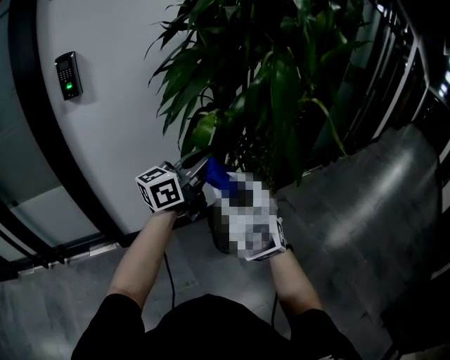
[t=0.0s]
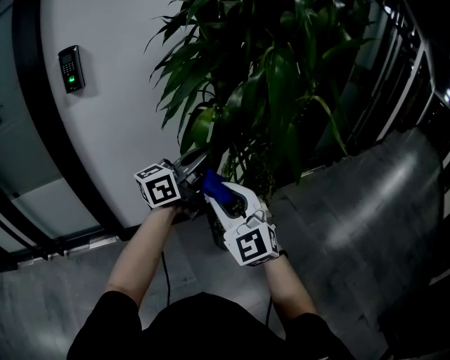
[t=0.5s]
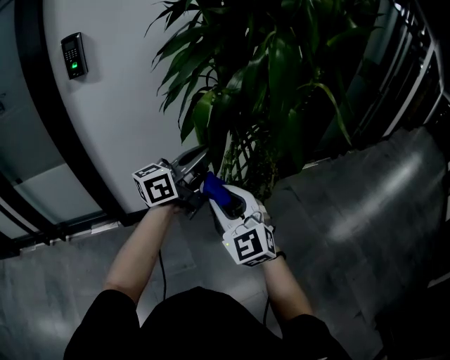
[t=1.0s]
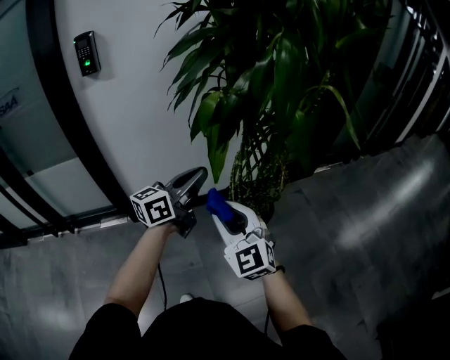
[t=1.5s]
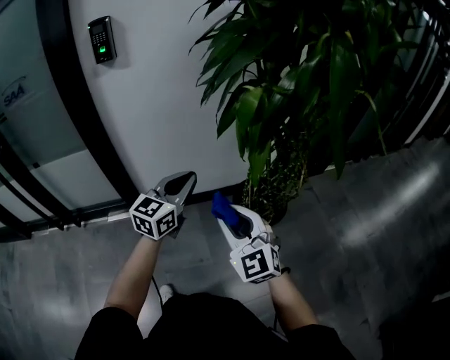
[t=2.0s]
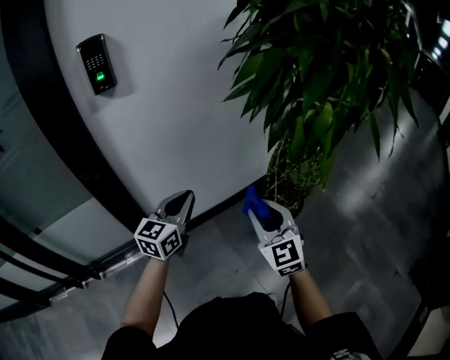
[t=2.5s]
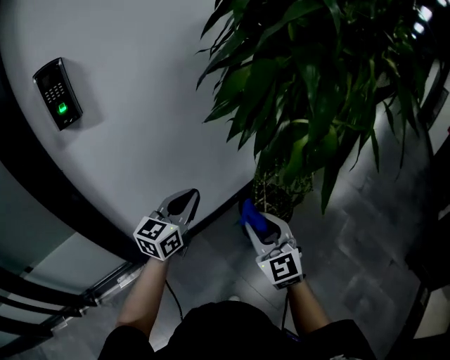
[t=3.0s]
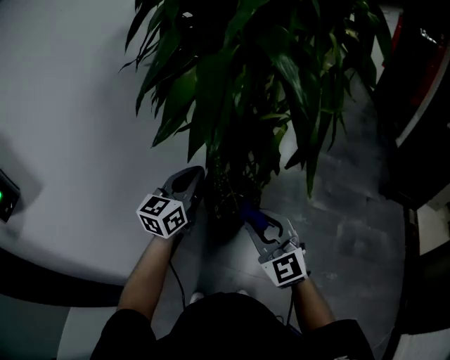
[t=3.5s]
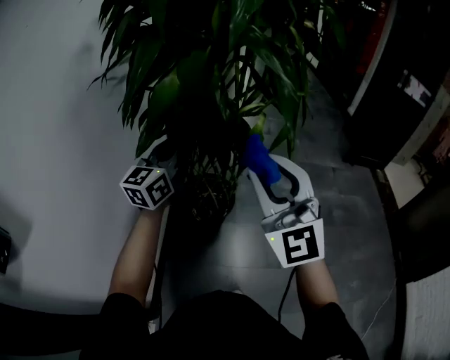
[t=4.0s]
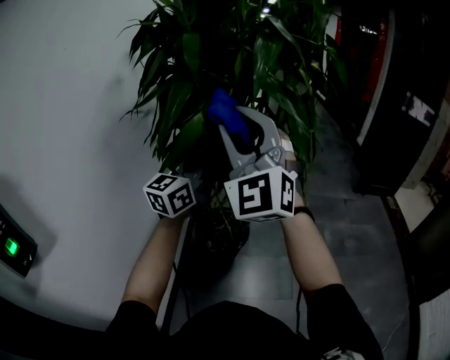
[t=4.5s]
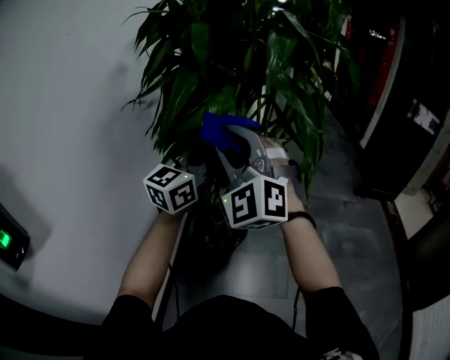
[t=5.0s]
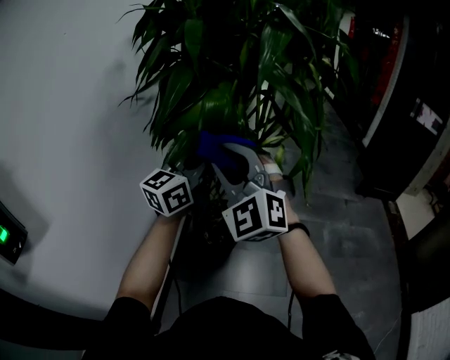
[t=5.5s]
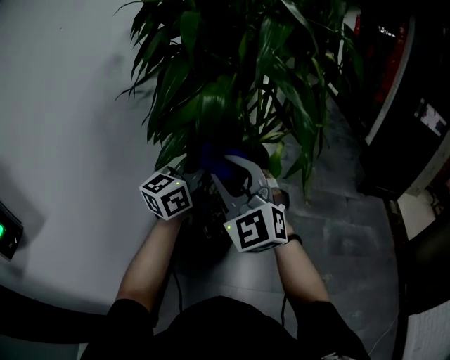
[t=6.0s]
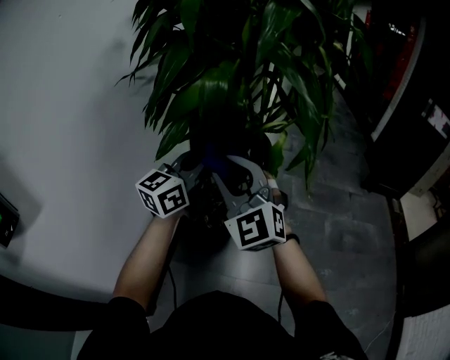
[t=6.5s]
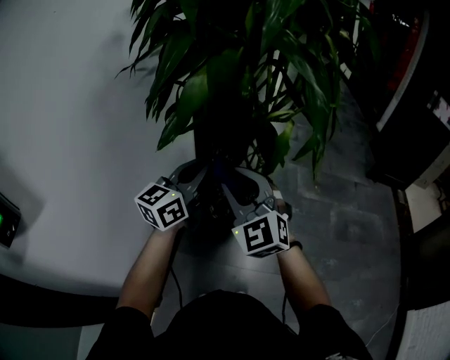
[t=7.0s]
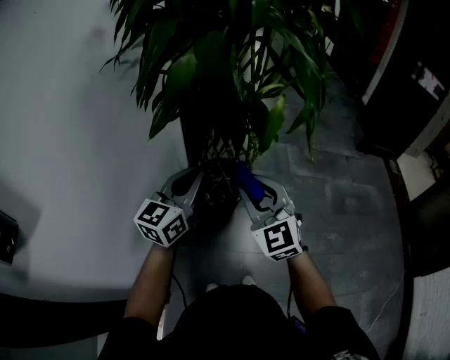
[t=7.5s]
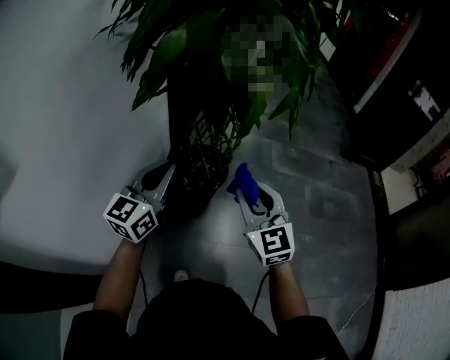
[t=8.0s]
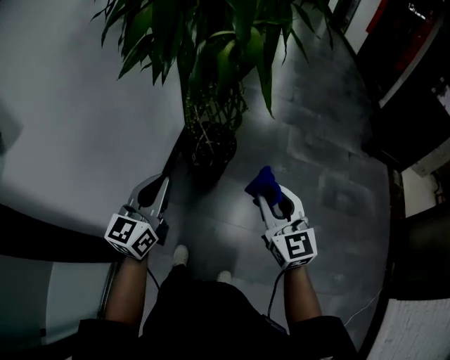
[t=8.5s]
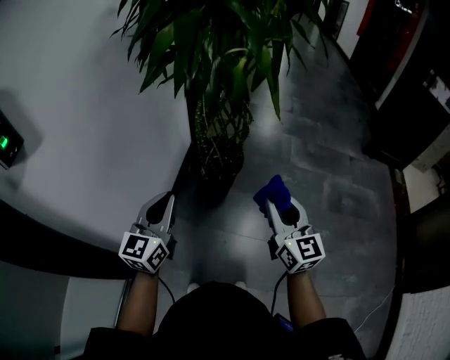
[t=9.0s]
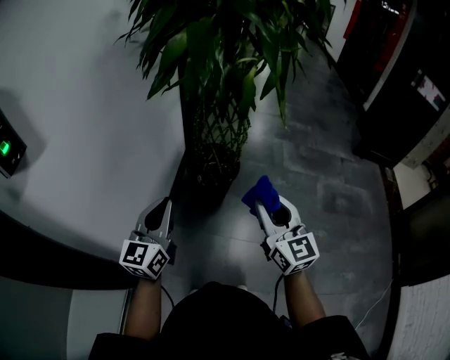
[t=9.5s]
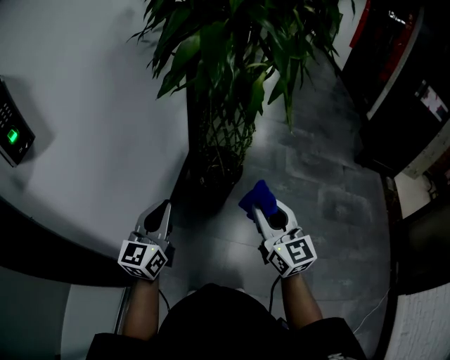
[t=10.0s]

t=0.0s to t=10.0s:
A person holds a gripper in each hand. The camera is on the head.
t=0.0s to t=2.0s: The left gripper is displaced downward and to the left by roughly 20 cm, and rotates about 40 degrees. The right gripper moves downward and backward, about 15 cm.
t=2.0s to t=4.0s: The right gripper moves upward, some 20 cm, and turns by about 70 degrees; the left gripper moves some 25 cm, and changes its angle by about 60 degrees.
t=4.0s to t=6.0s: The right gripper moves to the left, roughly 10 cm, and travels upward and back again, approximately 15 cm each way.
t=6.0s to t=8.0s: The right gripper heads downward, to the right and backward, covering roughly 25 cm, and changes its angle by approximately 30 degrees. The left gripper goes some 20 cm downward and backward.
t=8.0s to t=10.0s: Both grippers move backward, roughly 15 cm. The right gripper moves about 15 cm to the right and comes back, and changes its angle by approximately 20 degrees.

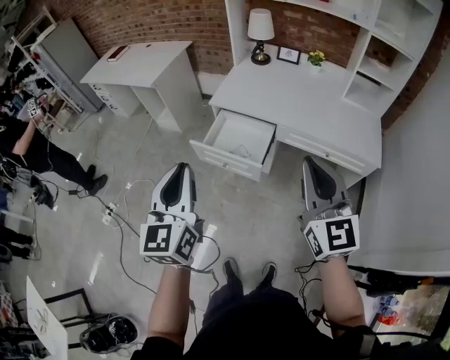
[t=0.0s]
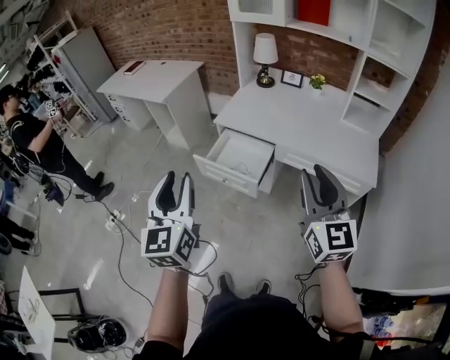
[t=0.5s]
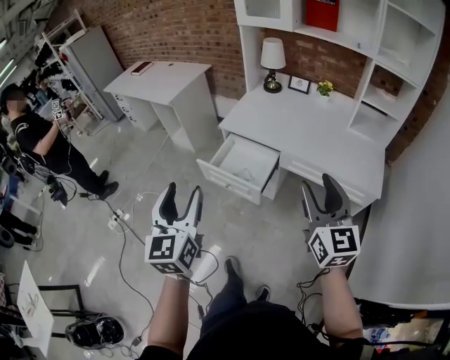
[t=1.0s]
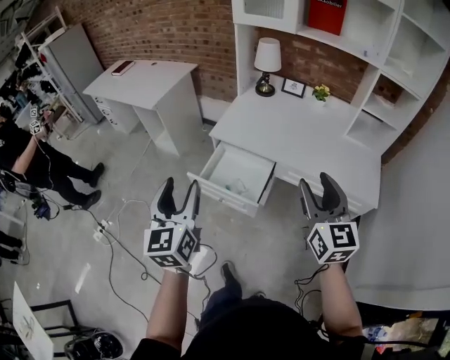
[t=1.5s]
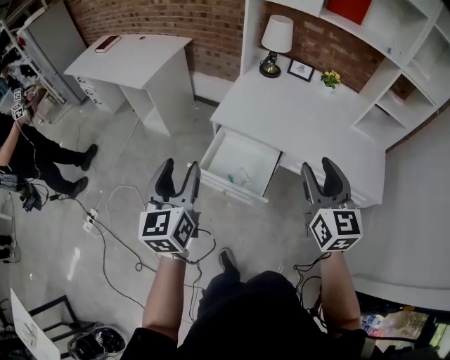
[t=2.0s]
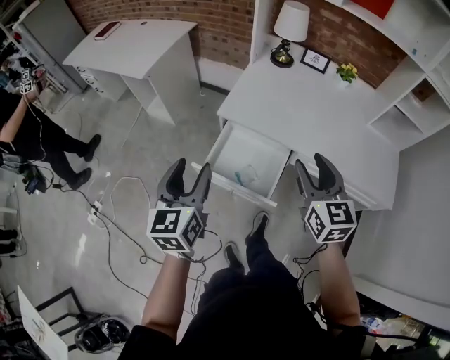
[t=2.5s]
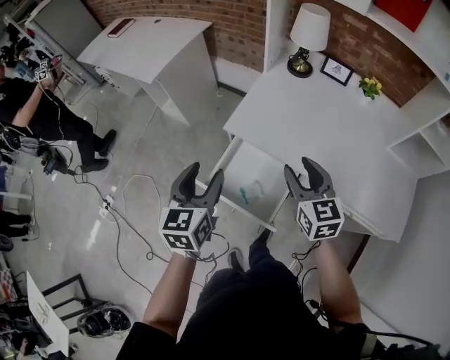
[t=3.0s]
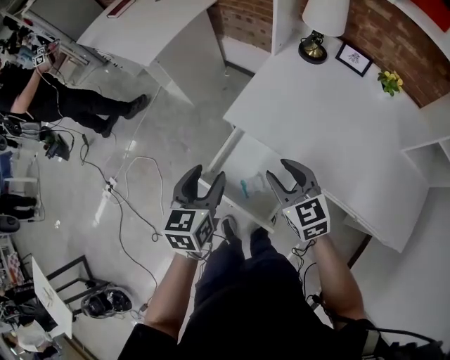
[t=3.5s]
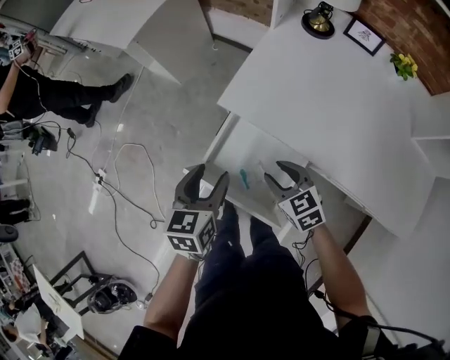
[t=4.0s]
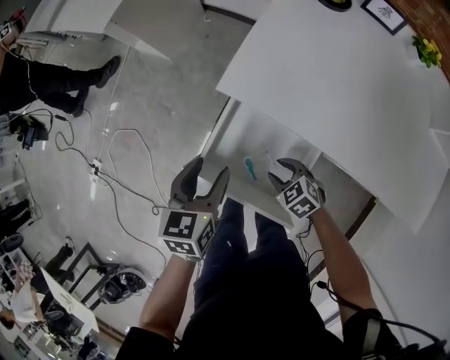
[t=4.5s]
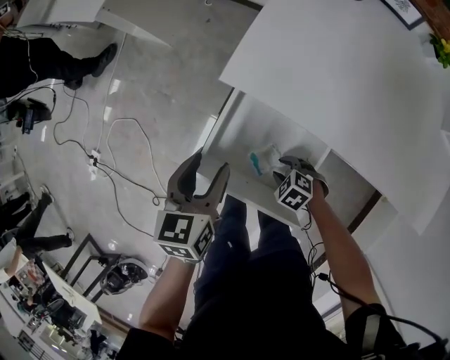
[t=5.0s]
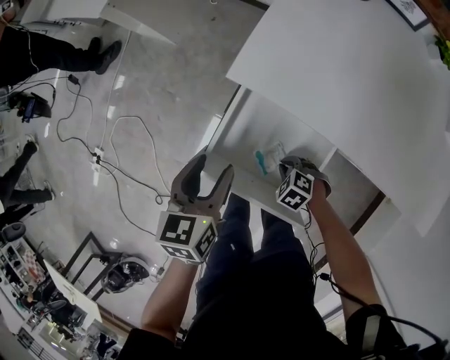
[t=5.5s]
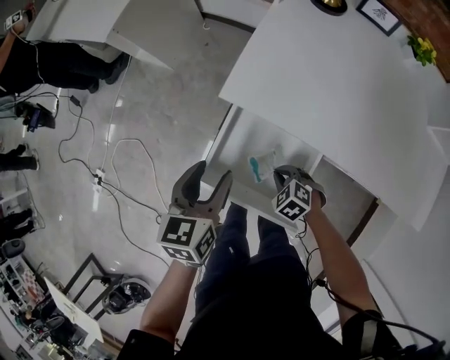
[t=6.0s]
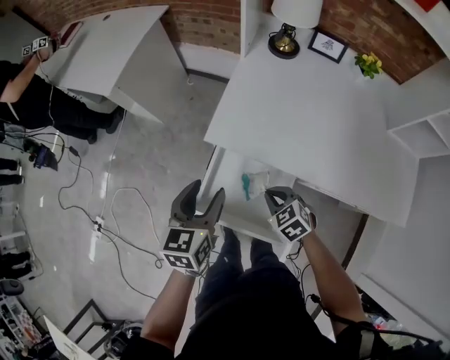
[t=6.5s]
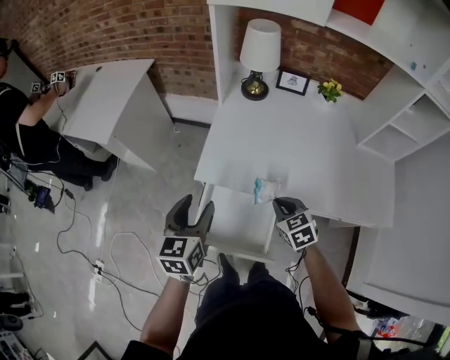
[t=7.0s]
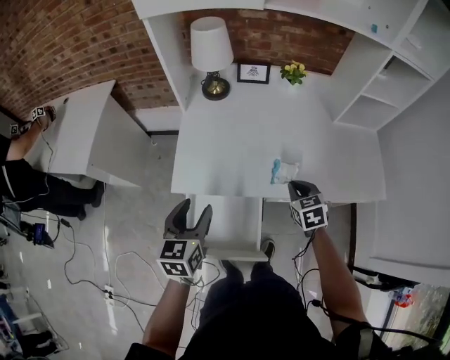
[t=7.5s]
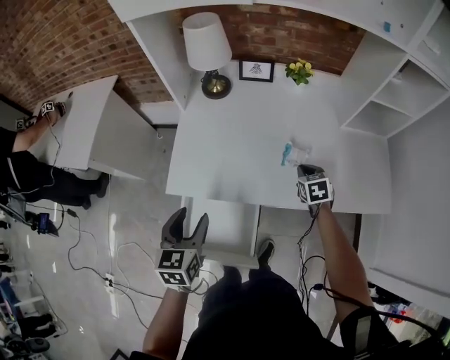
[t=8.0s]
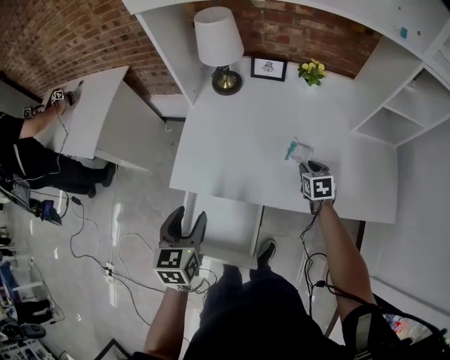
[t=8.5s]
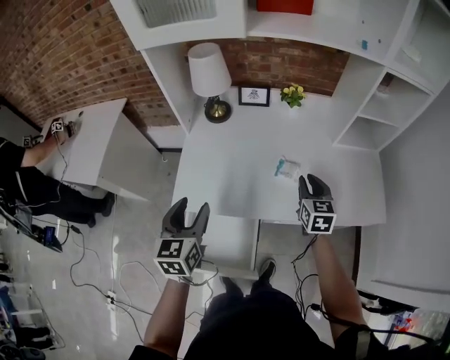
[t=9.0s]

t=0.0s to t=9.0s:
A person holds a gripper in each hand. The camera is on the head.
t=0.0s to t=2.0s: The grippers both shift forward by about 20 cm. The right gripper opens up. Meanwhile the left gripper opens up.
t=2.0s to t=4.5s: The grippers both shift downward and forward by roughly 40 cm. The right gripper points its fingers some 50 degrees further downward; the left gripper tips its fingers downward by about 30 degrees.
t=4.5s to t=7.0s: Both grippers travel together upward, about 20 cm. The right gripper swivels about 40 degrees, and closes. Meanwhile the left gripper turns by some 20 degrees.
t=7.0s to t=9.0s: The left gripper goes roughly 15 cm to the right and forward. Meanwhile the right gripper goes approximately 25 cm to the right and forward, turns by some 40 degrees, and opens.

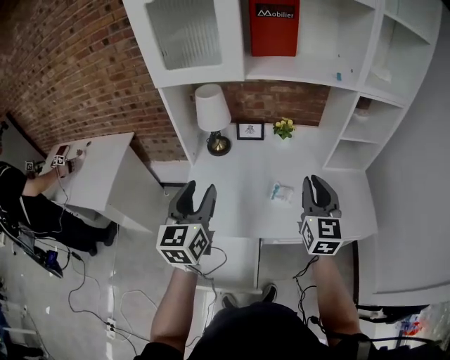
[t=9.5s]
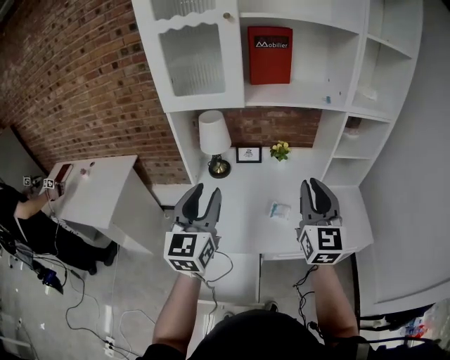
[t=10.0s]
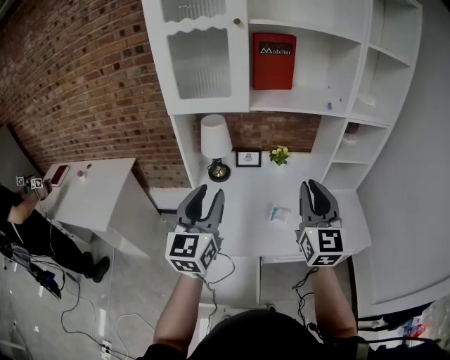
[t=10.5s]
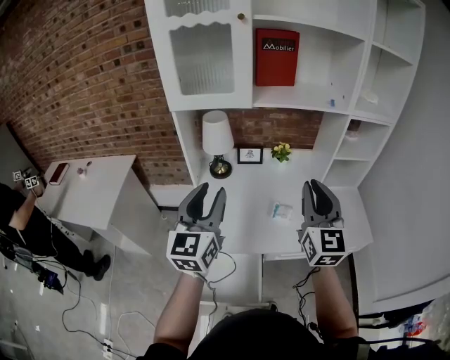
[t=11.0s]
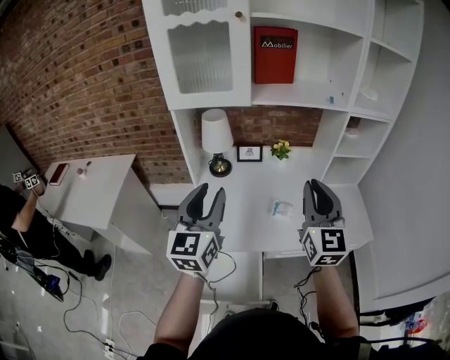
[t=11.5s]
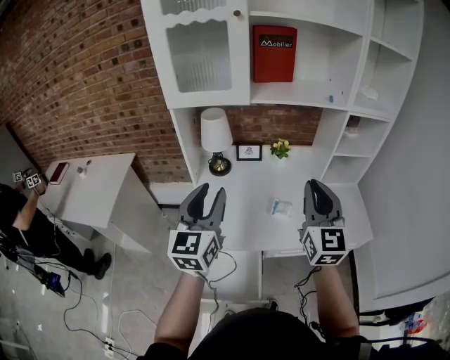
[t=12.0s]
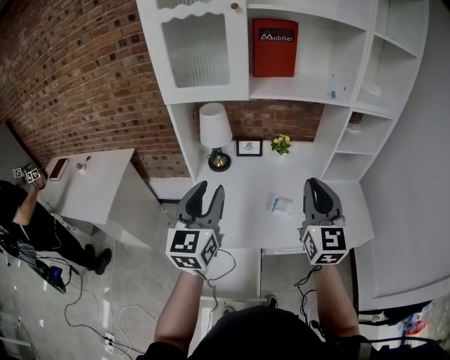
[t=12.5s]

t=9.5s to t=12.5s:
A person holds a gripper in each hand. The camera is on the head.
t=9.5s to t=11.0s: The two grippers go some 10 cm upward.
t=11.0s to t=12.5s: There are only small adjustments of the grippers.

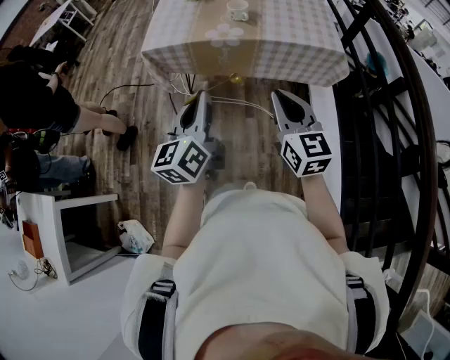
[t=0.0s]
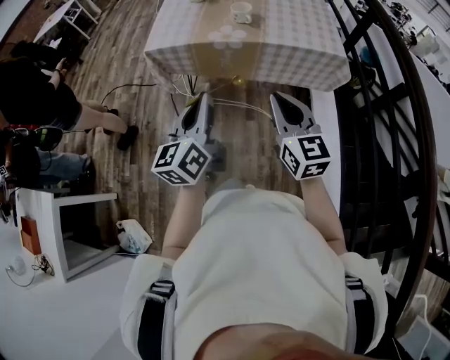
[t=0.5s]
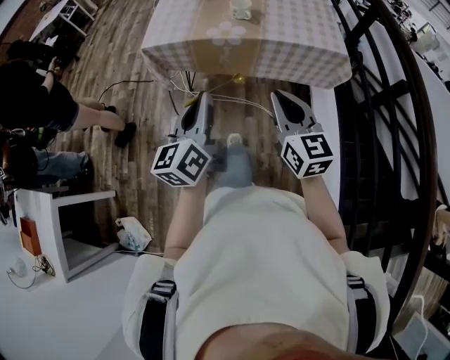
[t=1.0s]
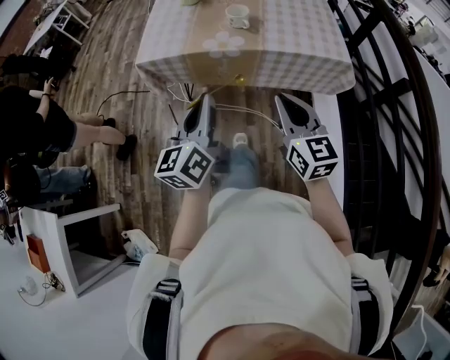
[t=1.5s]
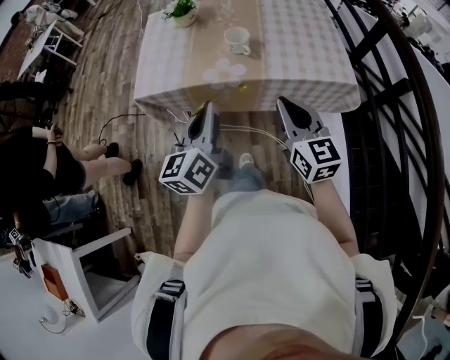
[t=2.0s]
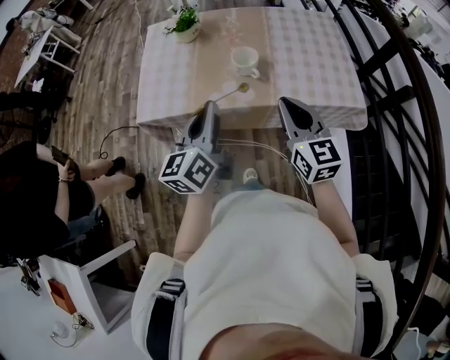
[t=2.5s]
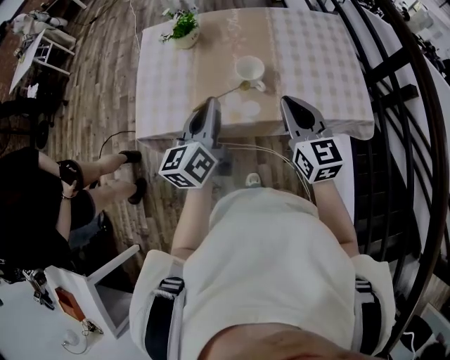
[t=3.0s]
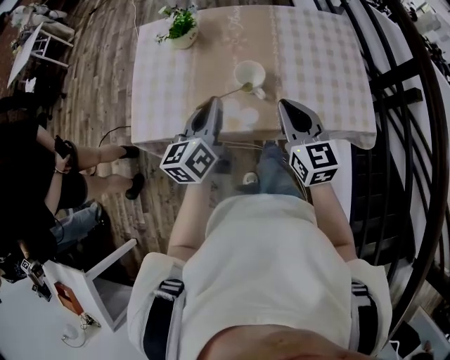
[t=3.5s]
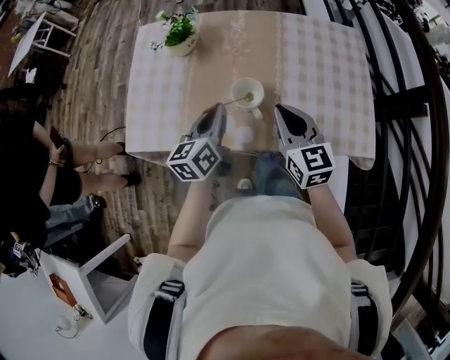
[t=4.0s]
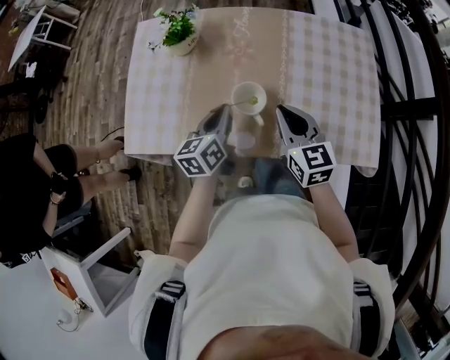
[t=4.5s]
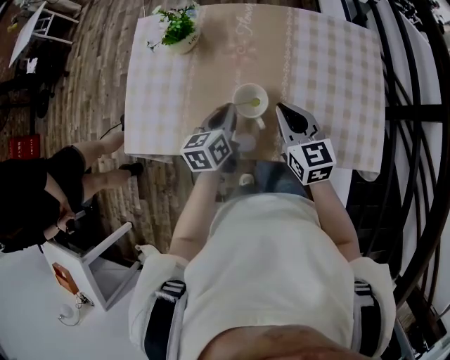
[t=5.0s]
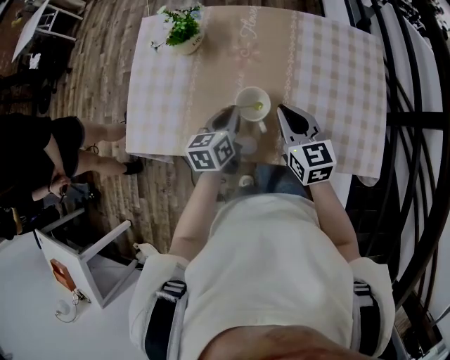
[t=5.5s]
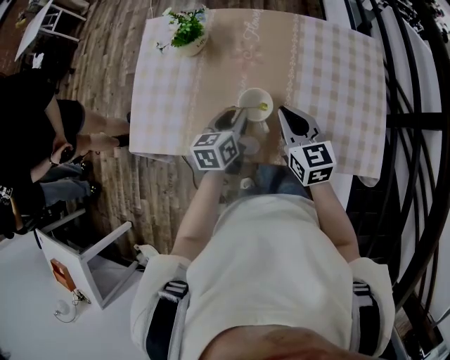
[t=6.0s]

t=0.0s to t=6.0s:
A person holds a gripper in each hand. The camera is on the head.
t=0.0s to t=2.0s: Both grippers move forward, some 15 cm.
t=2.0s to t=4.0s: The left gripper is displaced forward and downward by some 25 cm. The right gripper shifts some 20 cm forward.
t=4.0s to t=6.0s: The right gripper is displaced forward by approximately 5 cm. The left gripper heads downward, covering about 10 cm, and opens its fingers.
